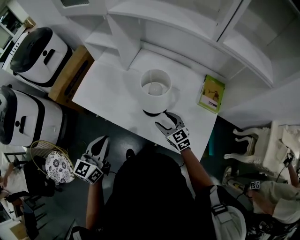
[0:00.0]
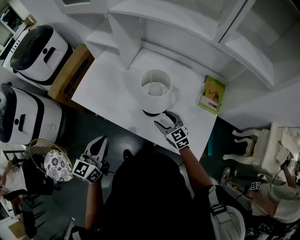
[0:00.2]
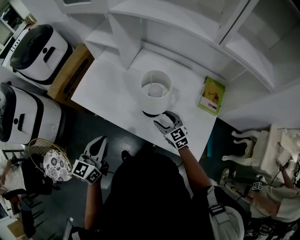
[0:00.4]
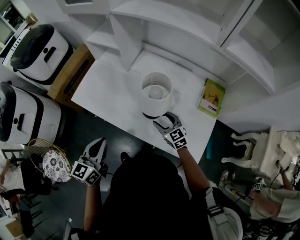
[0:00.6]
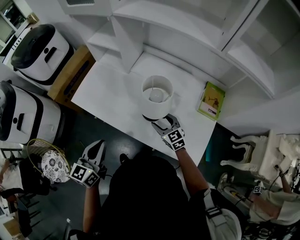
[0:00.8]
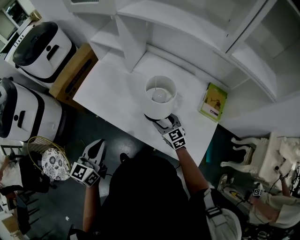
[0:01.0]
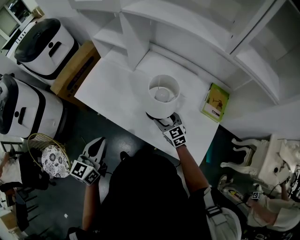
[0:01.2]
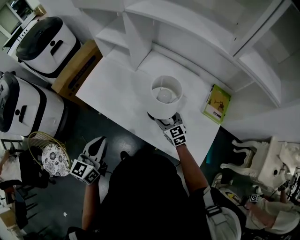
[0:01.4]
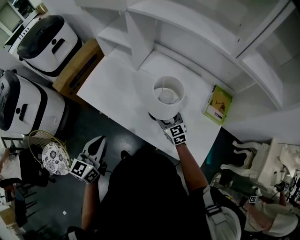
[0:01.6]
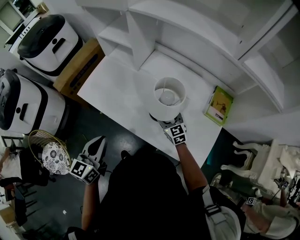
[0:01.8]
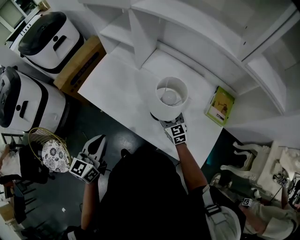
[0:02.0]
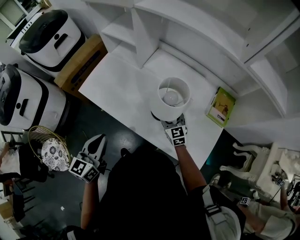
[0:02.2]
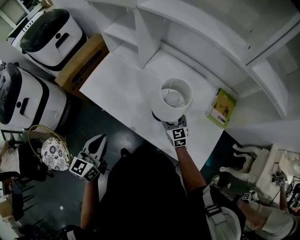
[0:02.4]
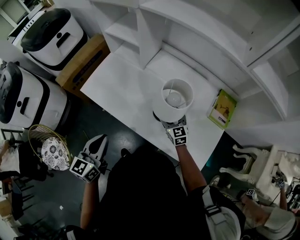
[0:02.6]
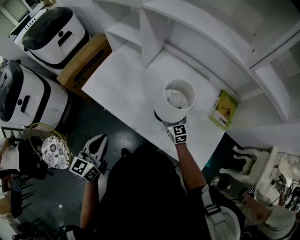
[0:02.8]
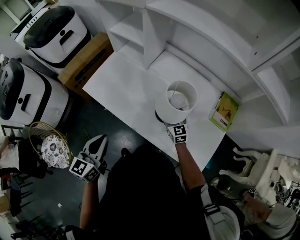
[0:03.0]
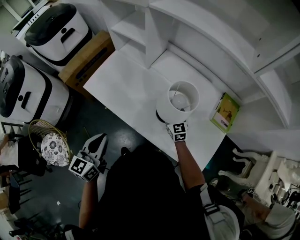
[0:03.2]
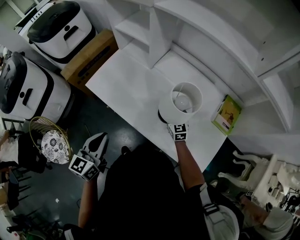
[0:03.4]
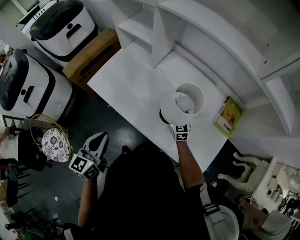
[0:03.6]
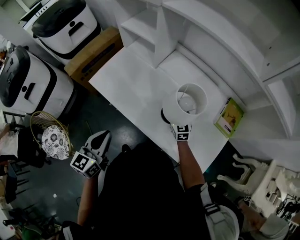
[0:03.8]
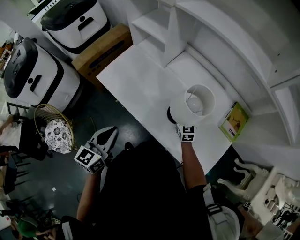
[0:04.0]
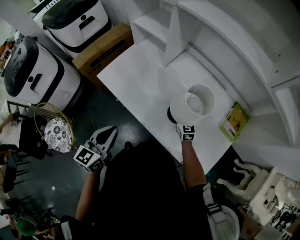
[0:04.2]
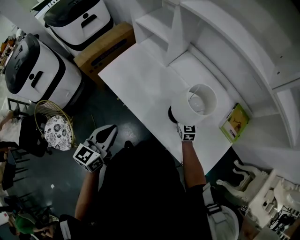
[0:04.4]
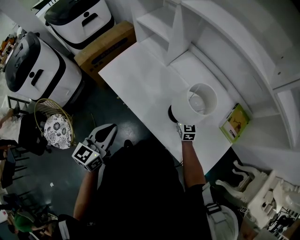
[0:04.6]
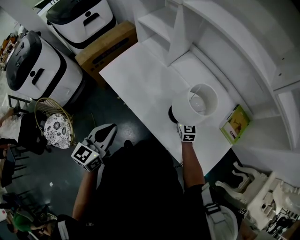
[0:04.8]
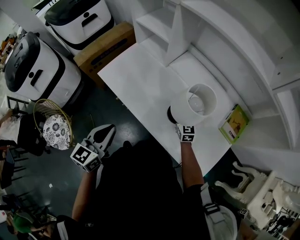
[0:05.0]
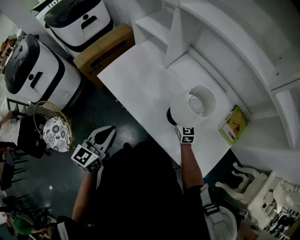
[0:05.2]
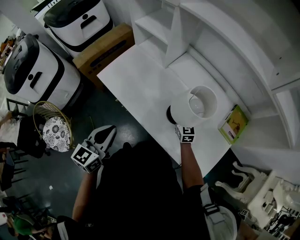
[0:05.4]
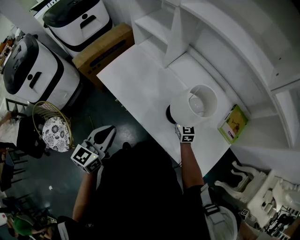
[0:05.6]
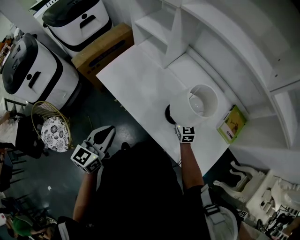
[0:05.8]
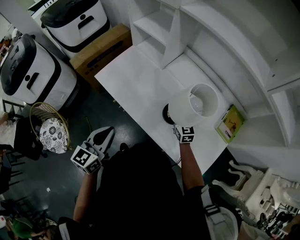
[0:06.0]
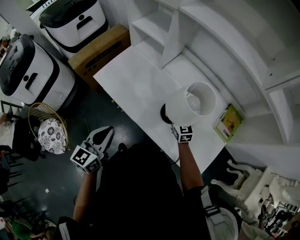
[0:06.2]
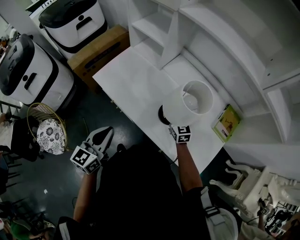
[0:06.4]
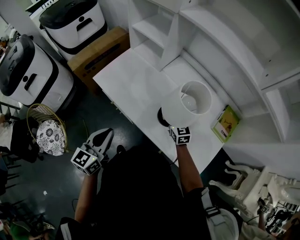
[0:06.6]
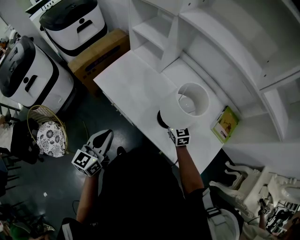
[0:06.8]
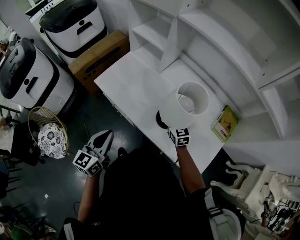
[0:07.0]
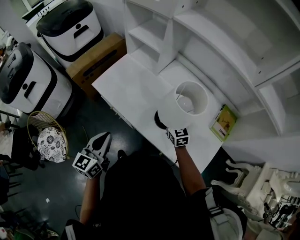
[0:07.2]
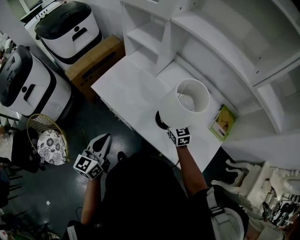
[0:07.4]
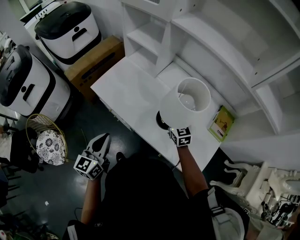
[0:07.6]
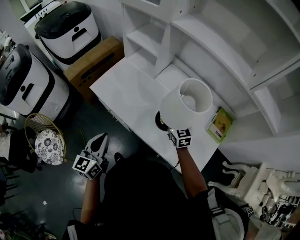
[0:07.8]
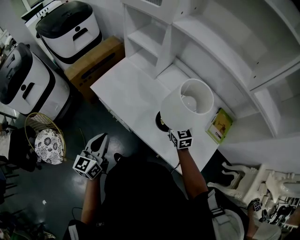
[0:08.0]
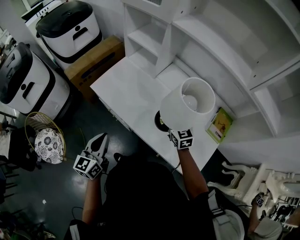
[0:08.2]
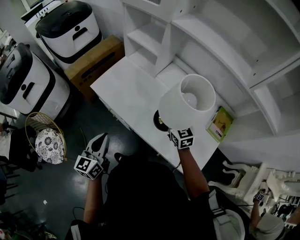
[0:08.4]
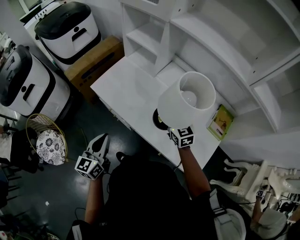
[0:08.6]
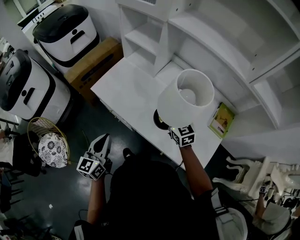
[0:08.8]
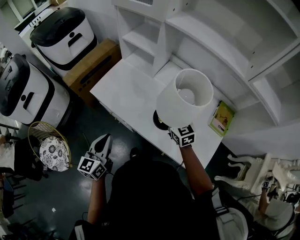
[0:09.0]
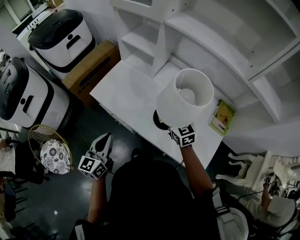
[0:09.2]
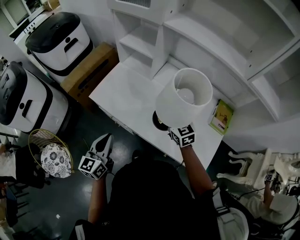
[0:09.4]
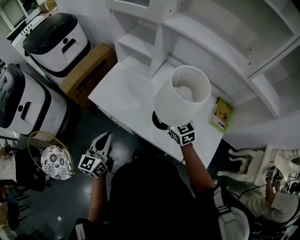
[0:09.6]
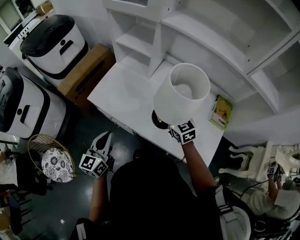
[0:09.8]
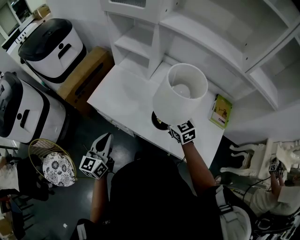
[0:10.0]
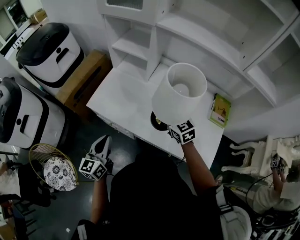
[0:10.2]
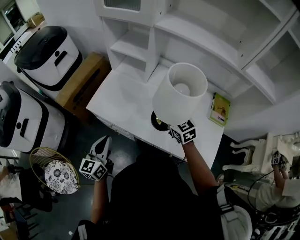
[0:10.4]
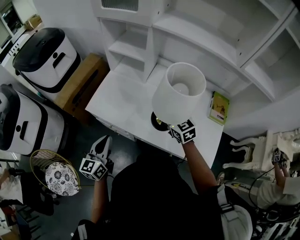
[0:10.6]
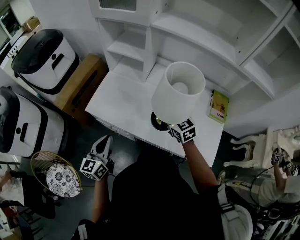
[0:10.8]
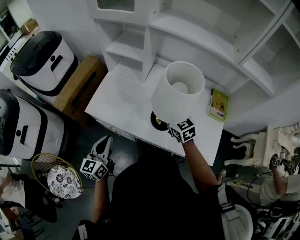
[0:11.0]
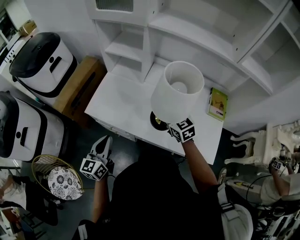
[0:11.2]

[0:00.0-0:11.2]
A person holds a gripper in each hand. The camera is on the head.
0:00.0 to 0:01.6: The right gripper is displaced forward by roughly 5 cm.
0:01.6 to 0:03.2: The right gripper moves roughly 5 cm.
0:03.2 to 0:04.8: The right gripper closes its fingers.
0:04.8 to 0:06.4: The right gripper travels upward by some 5 cm.
0:06.4 to 0:08.0: The right gripper shifts some 5 cm upward.
0:08.0 to 0:09.6: The right gripper shifts by roughly 5 cm.
0:09.6 to 0:11.2: The grippers stay close to where they were, moving slightly.

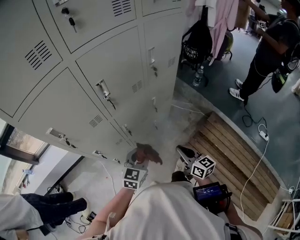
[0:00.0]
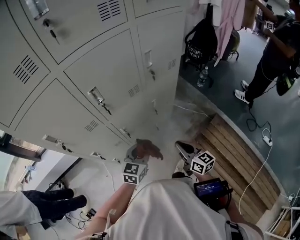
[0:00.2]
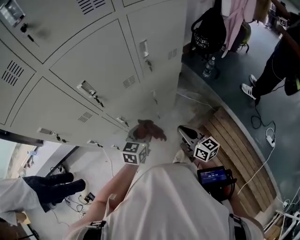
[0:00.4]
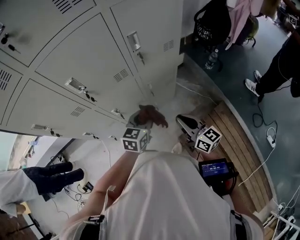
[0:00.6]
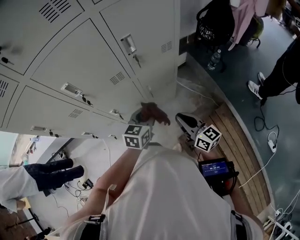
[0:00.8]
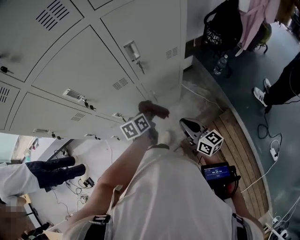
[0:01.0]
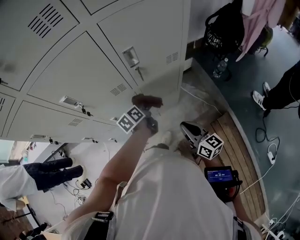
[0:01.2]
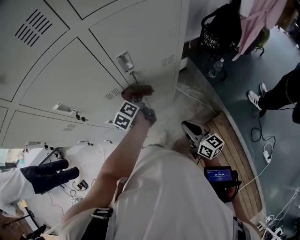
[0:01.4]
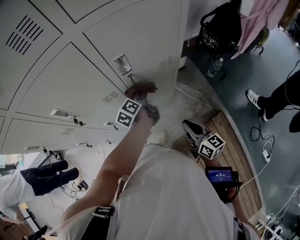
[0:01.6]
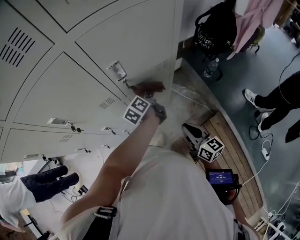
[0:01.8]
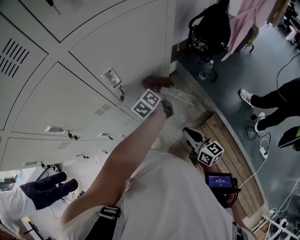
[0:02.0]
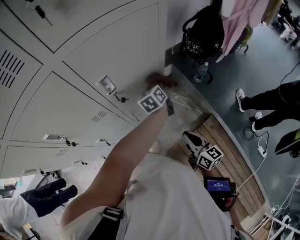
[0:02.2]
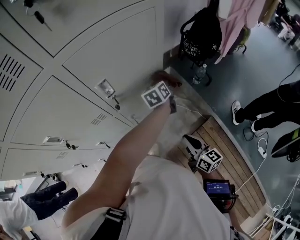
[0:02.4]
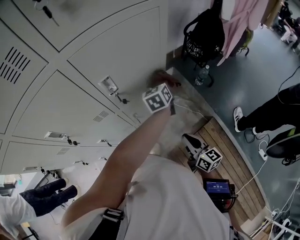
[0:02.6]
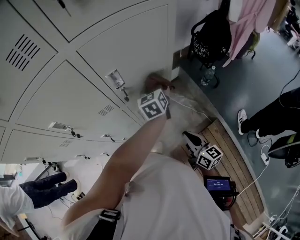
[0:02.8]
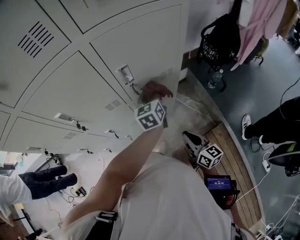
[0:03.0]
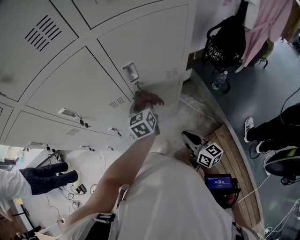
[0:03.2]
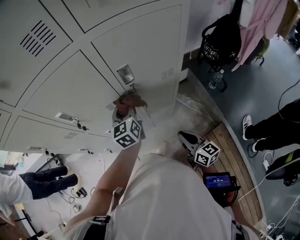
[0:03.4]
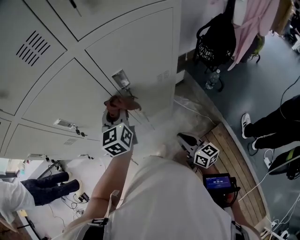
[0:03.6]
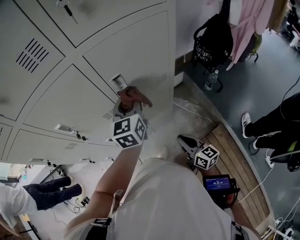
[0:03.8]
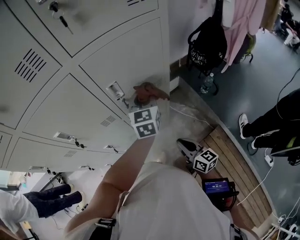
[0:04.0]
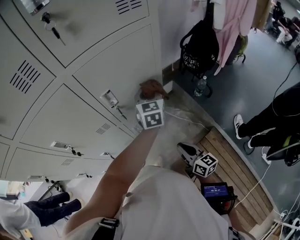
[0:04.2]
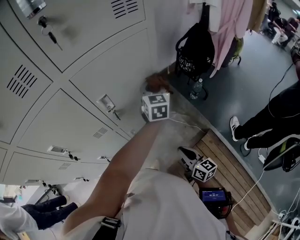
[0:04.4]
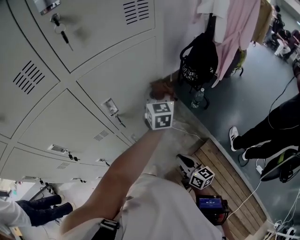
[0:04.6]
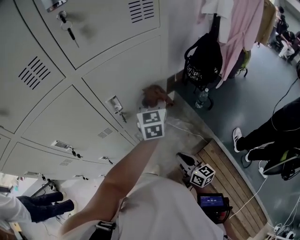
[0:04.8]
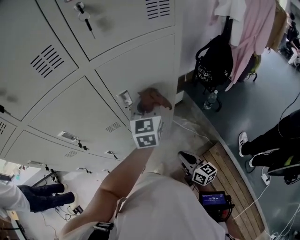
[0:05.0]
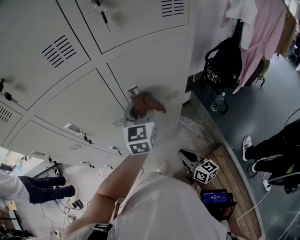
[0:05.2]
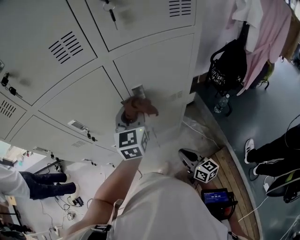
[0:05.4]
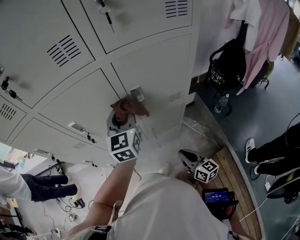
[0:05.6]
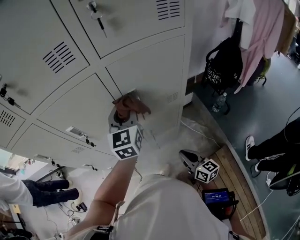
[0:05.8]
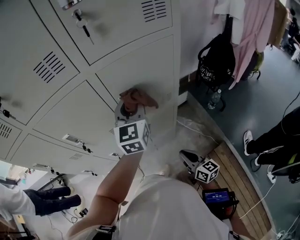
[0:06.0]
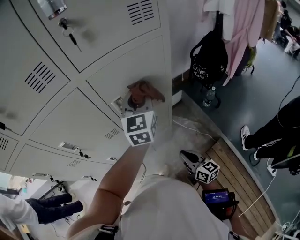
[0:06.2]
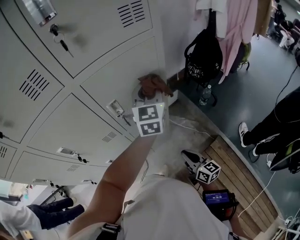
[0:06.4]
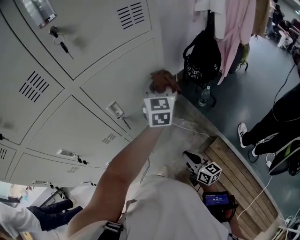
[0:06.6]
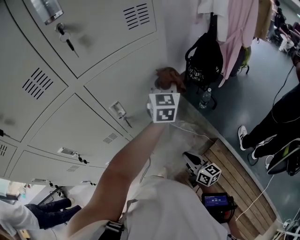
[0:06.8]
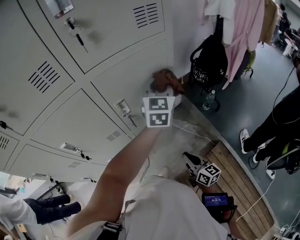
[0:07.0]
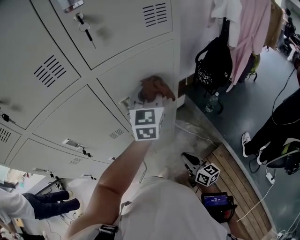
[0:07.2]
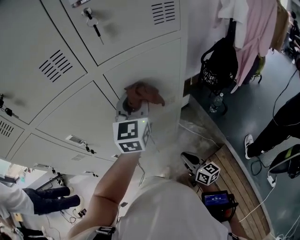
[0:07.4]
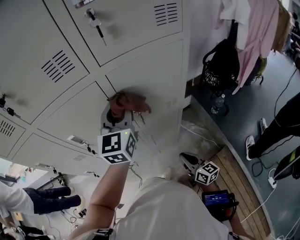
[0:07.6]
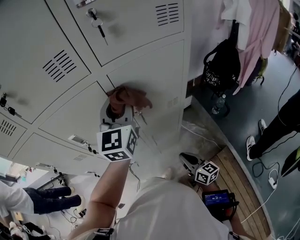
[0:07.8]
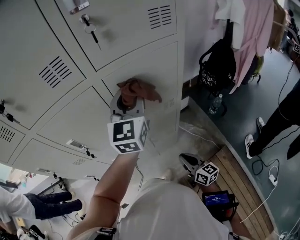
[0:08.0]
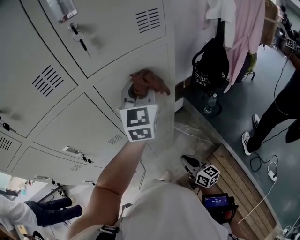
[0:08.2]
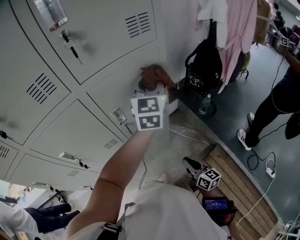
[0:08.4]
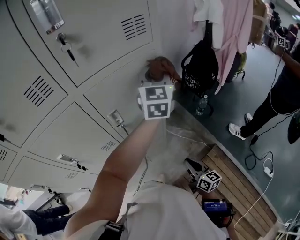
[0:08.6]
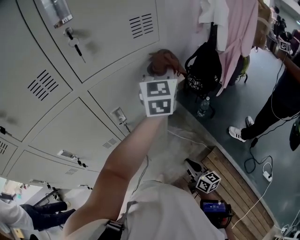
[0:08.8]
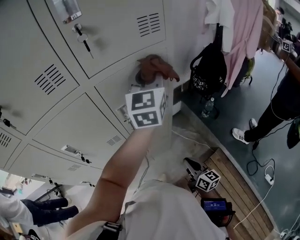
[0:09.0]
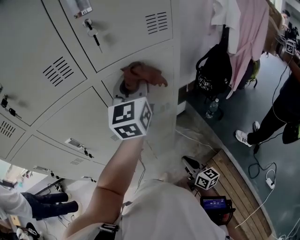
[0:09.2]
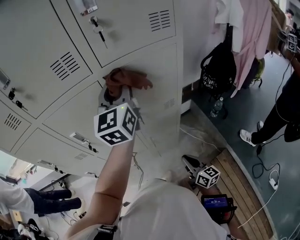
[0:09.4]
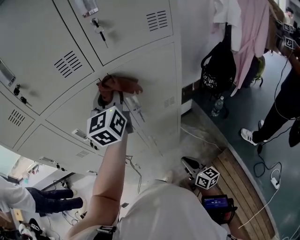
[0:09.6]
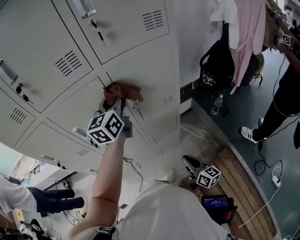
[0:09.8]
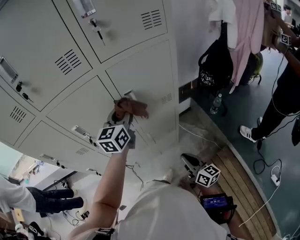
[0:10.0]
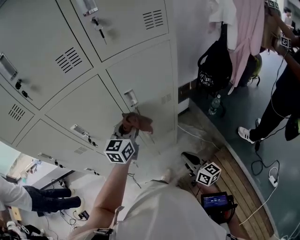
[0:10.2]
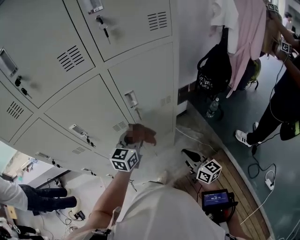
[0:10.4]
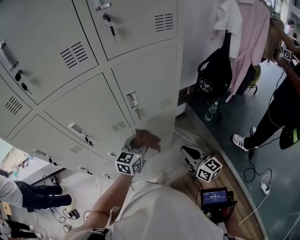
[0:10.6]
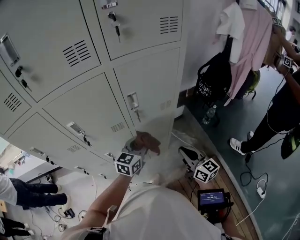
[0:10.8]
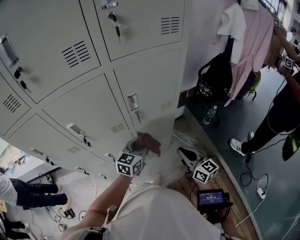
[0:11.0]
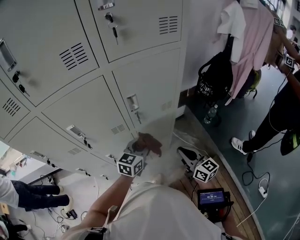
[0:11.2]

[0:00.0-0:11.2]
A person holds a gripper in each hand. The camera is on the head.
0:00.0 to 0:01.6: The right gripper changes place by approximately 25 cm. Meanwhile the left gripper moves approximately 35 cm, and rolls counterclockwise, seen from behind, by about 70 degrees.
0:01.6 to 0:03.2: The left gripper heads upward, covering about 5 cm, moves roughly 25 cm to the right and comes back, and rotates around the line of its fingers by roughly 40 degrees, clockwise from behind.
0:03.2 to 0:04.8: The left gripper moves left and right over approximately 30 cm, changing direction 2 times, and changes its angle by some 30 degrees.
0:04.8 to 0:06.4: The left gripper is displaced upward by some 5 cm, and moves about 20 cm to the left and comes back.
0:06.4 to 0:08.0: The right gripper moves some 5 cm. Meanwhile the left gripper goes left and right, approximately 25 cm each way, reversing 2 times.
0:08.0 to 0:09.6: The right gripper goes to the right and returns, roughly 10 cm each way. Meanwhile the left gripper moves approximately 20 cm to the right and comes back.
0:09.6 to 0:11.2: The left gripper moves downward, about 30 cm, and rotates roughly 40 degrees; the right gripper moves upward, some 10 cm.

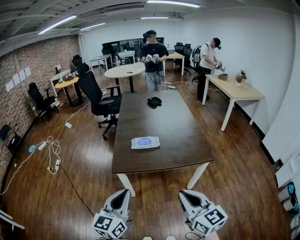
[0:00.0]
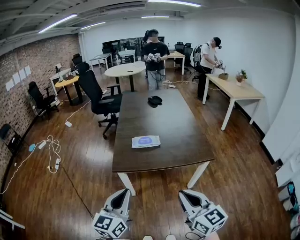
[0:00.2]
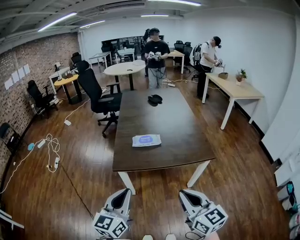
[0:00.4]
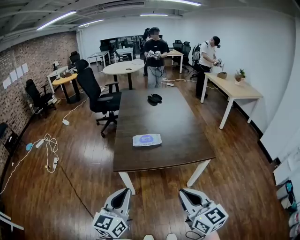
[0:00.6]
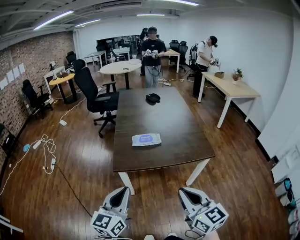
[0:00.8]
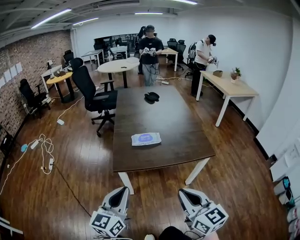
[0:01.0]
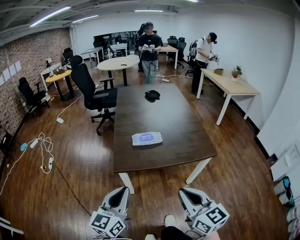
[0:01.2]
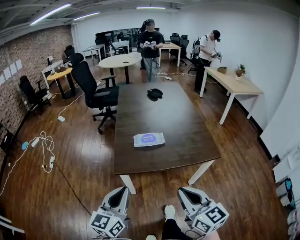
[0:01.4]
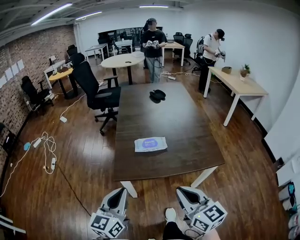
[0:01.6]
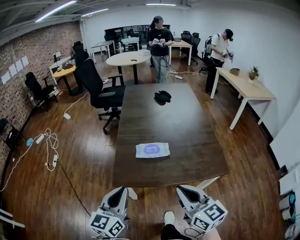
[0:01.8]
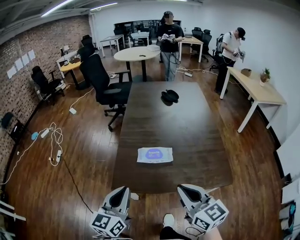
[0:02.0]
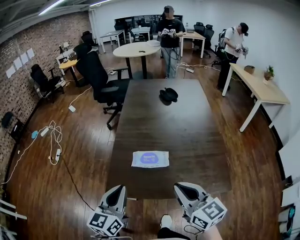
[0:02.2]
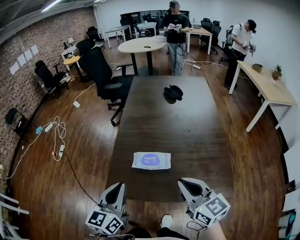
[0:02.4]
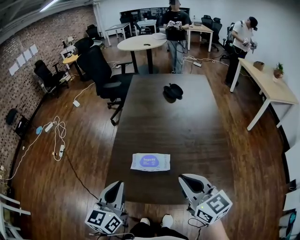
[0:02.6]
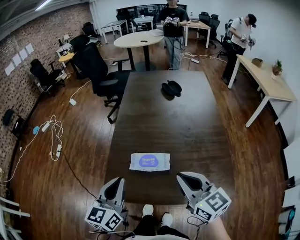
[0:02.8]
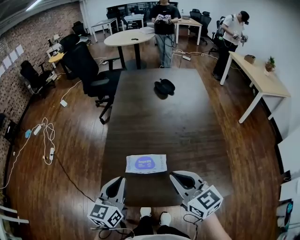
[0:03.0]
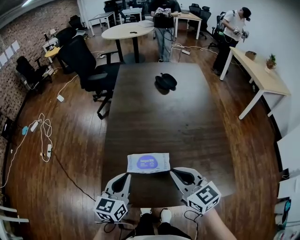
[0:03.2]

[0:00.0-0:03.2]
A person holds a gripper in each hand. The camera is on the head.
0:00.0 to 0:01.6: Both grippers travel together forward and to the left, some 15 cm.
0:01.6 to 0:03.2: The left gripper travels forward and to the right by some 35 cm. The right gripper heads forward, covering roughly 35 cm.
